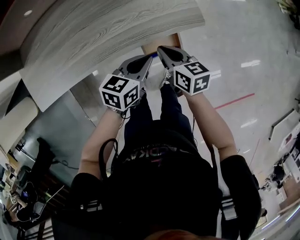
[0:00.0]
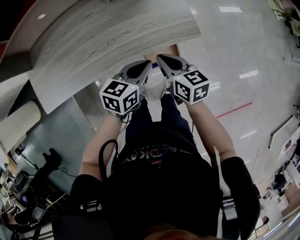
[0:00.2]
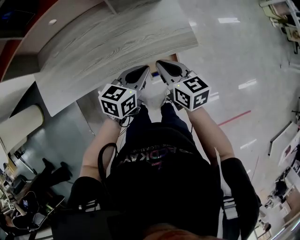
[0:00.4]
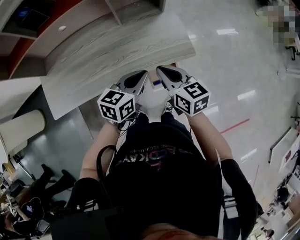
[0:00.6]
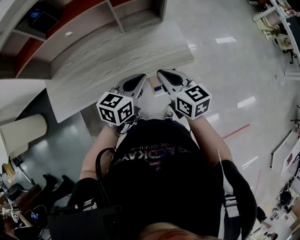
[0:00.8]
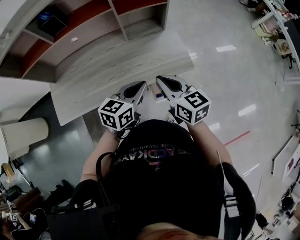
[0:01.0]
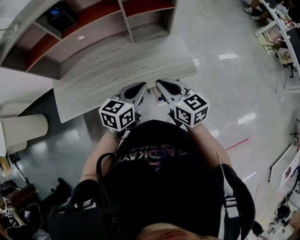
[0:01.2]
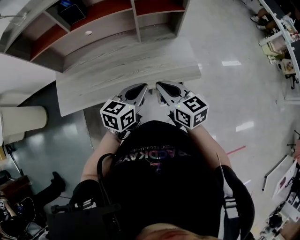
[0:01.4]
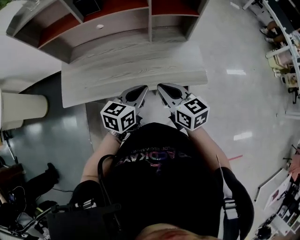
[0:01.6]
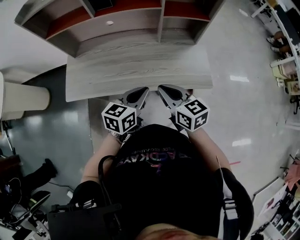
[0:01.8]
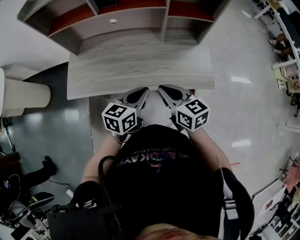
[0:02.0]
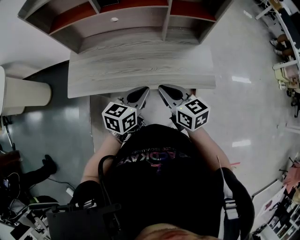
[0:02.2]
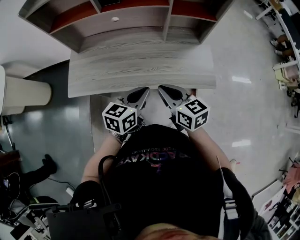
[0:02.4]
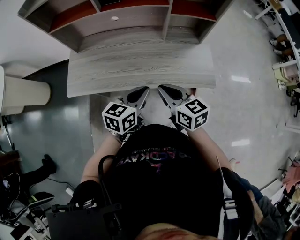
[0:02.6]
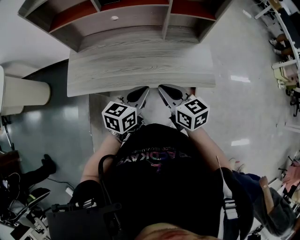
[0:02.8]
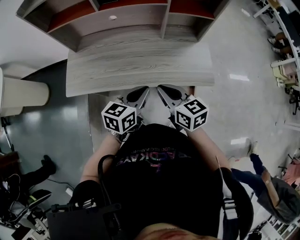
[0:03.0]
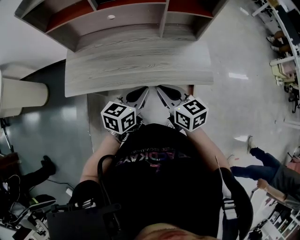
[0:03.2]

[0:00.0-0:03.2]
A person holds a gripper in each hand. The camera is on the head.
0:00.0 to 0:01.6: Both grippers move upward and to the left, approximately 15 cm. The left gripper swivels some 20 degrees; the right gripper turns by roughly 30 degrees.
0:01.6 to 0:03.2: There are only small adjustments of the grippers.

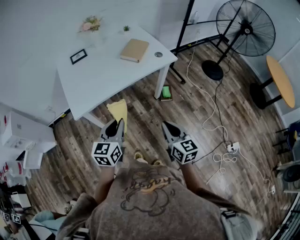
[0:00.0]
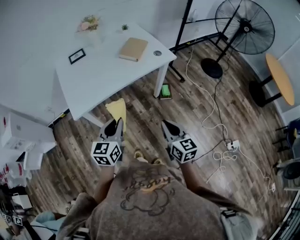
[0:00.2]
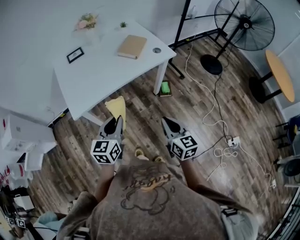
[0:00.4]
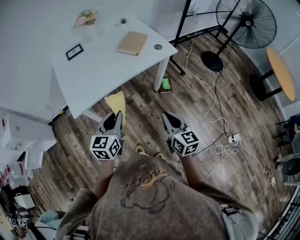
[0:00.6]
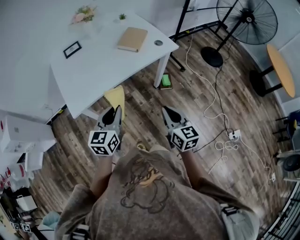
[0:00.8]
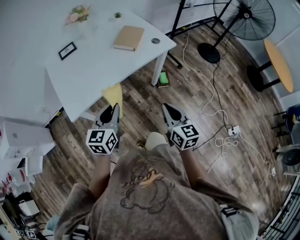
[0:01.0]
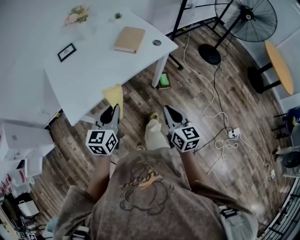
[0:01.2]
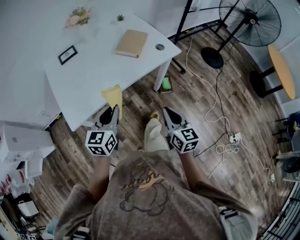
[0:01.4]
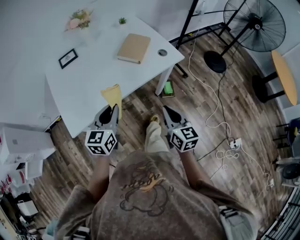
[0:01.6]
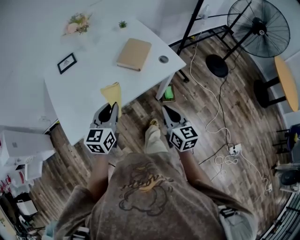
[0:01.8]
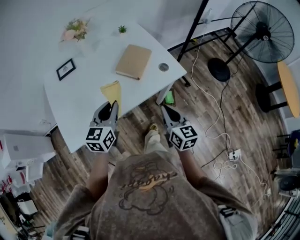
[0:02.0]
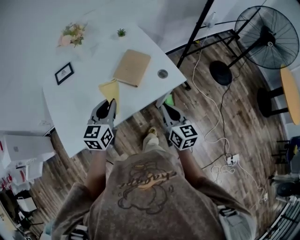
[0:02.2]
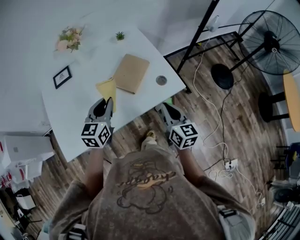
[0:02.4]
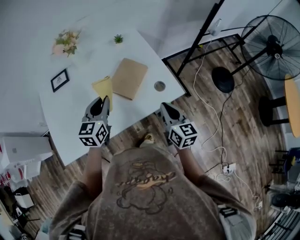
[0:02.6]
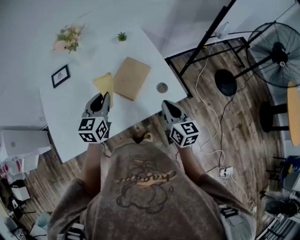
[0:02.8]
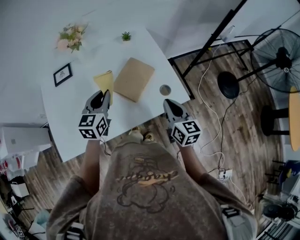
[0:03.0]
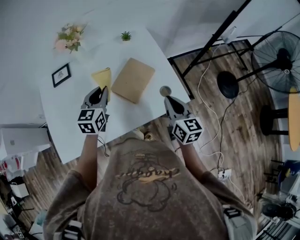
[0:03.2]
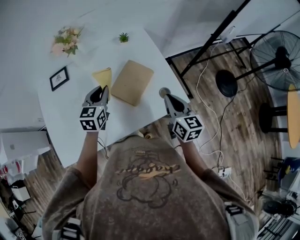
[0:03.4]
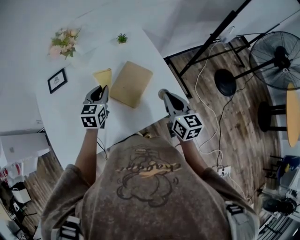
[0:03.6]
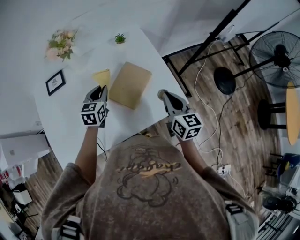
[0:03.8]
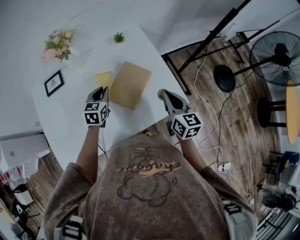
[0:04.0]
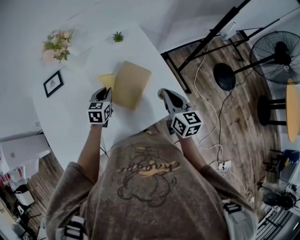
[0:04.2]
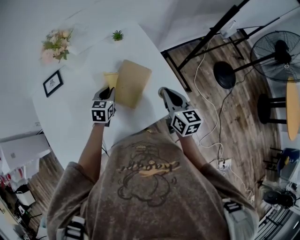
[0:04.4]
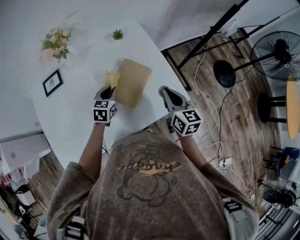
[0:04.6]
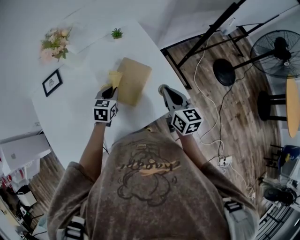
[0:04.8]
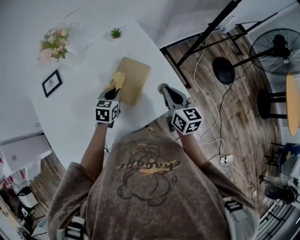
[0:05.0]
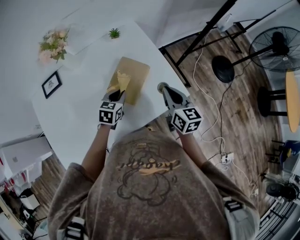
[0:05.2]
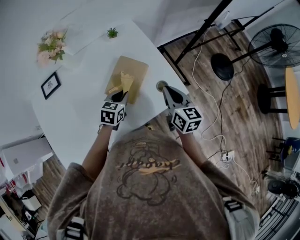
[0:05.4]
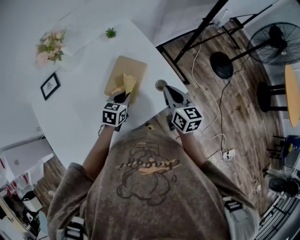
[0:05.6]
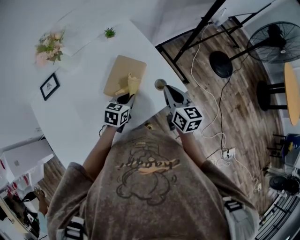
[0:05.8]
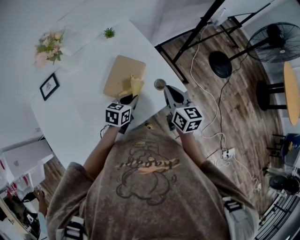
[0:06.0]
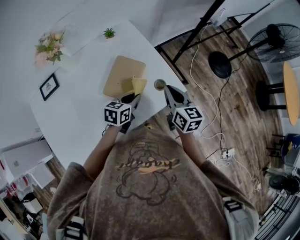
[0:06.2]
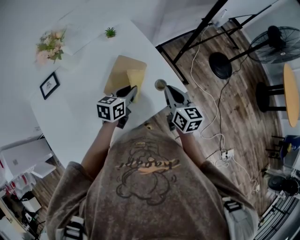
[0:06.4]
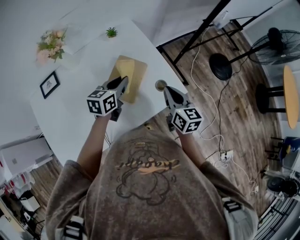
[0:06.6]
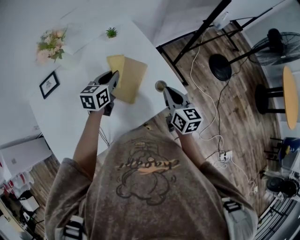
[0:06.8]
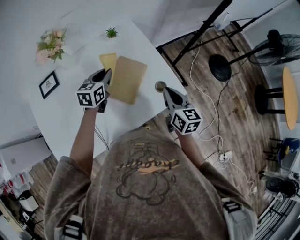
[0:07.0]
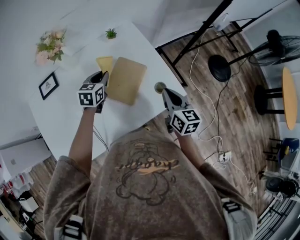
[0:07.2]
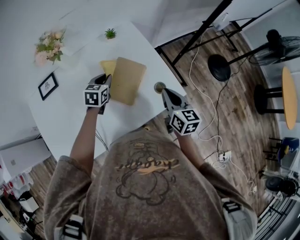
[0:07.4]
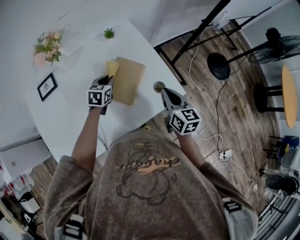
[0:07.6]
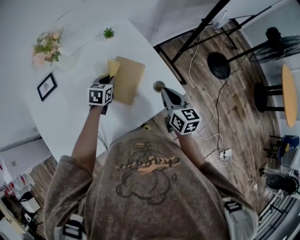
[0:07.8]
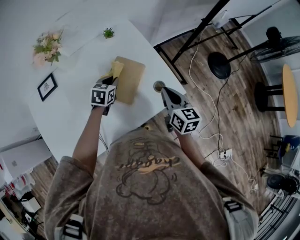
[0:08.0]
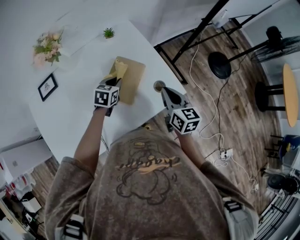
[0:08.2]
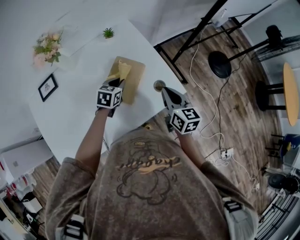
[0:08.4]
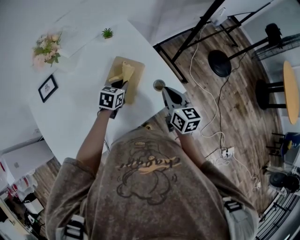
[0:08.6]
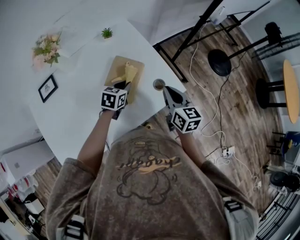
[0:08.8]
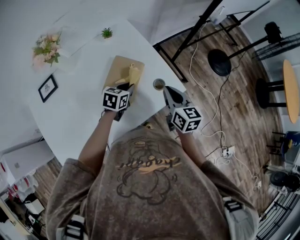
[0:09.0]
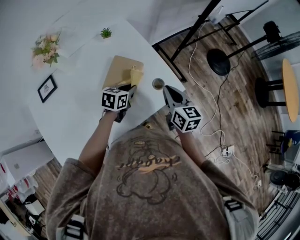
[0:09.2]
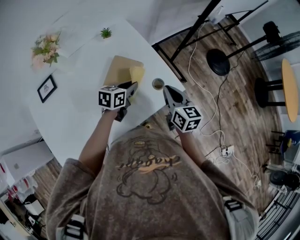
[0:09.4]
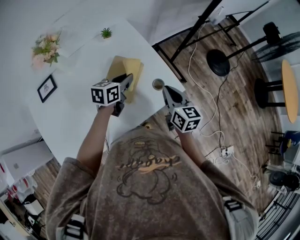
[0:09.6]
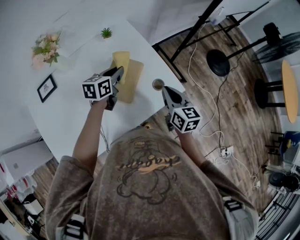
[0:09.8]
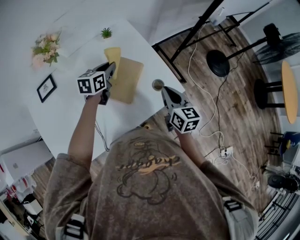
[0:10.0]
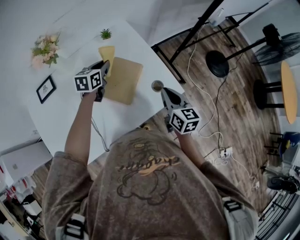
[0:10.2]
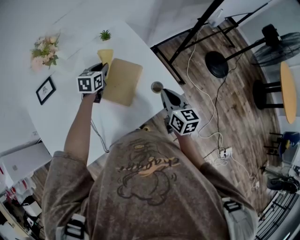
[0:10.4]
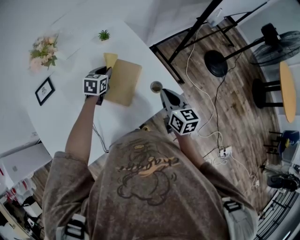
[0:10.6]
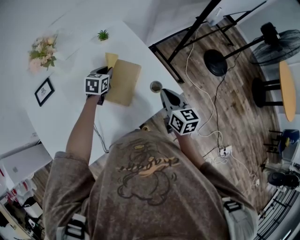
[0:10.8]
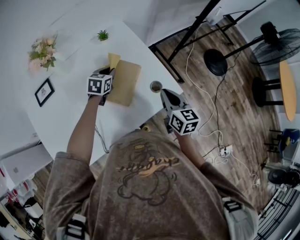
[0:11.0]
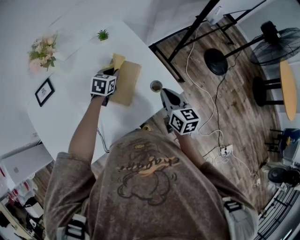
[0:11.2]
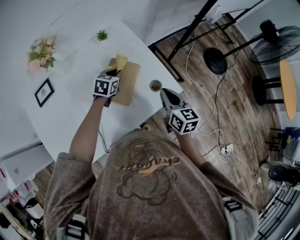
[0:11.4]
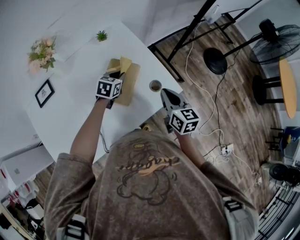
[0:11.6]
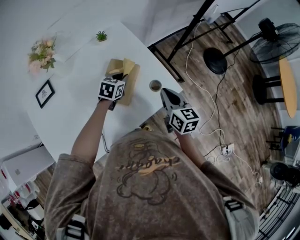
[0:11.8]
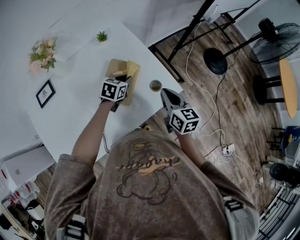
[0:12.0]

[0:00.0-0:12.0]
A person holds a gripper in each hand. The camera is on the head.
0:00.0 to 0:01.6: Both grippers travel together forward, some 20 cm.
0:01.6 to 0:03.0: Both grippers travel together forward, about 35 cm.
0:03.0 to 0:04.4: The left gripper travels downward and forward by some 20 cm, while the right gripper moves forward, roughly 10 cm.
0:04.4 to 0:06.0: The left gripper moves to the right and backward, about 15 cm, and swivels some 20 degrees.
0:06.0 to 0:07.6: The left gripper travels to the left and forward by some 15 cm.
0:07.6 to 0:09.0: The left gripper moves to the right, some 10 cm.
0:09.0 to 0:10.4: The left gripper travels to the left and forward by some 15 cm.
0:10.4 to 0:12.0: The left gripper travels to the right and backward by roughly 15 cm.

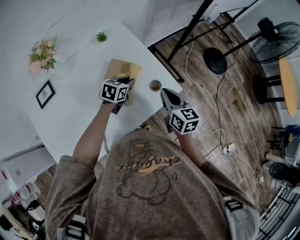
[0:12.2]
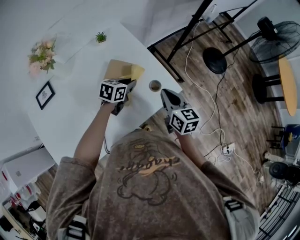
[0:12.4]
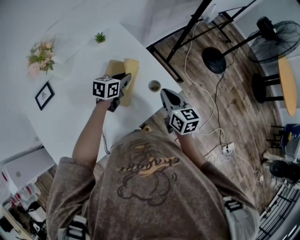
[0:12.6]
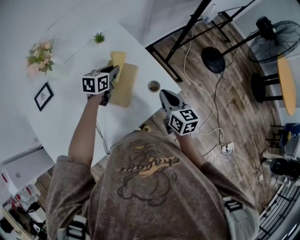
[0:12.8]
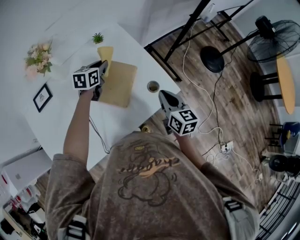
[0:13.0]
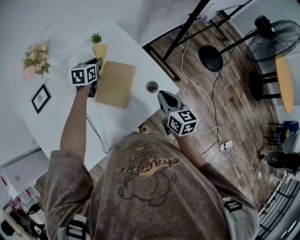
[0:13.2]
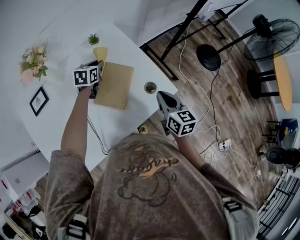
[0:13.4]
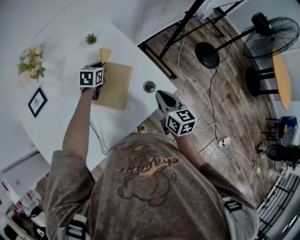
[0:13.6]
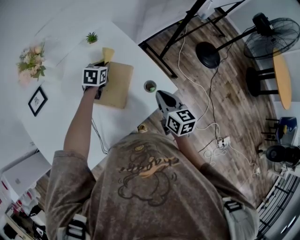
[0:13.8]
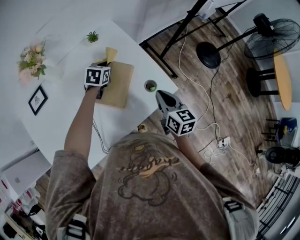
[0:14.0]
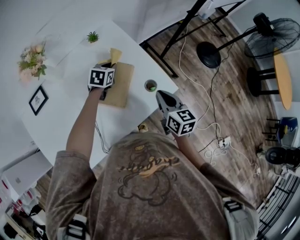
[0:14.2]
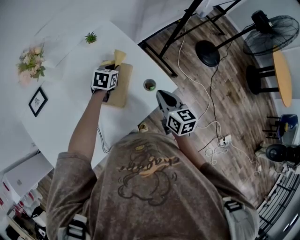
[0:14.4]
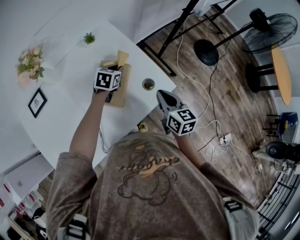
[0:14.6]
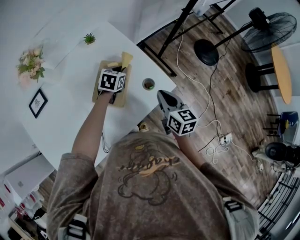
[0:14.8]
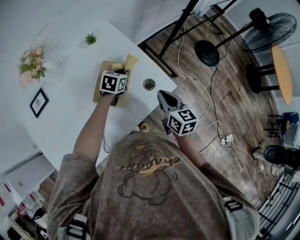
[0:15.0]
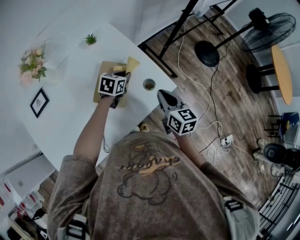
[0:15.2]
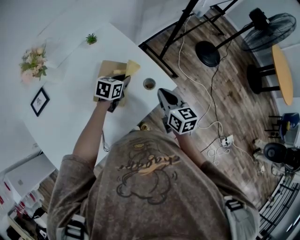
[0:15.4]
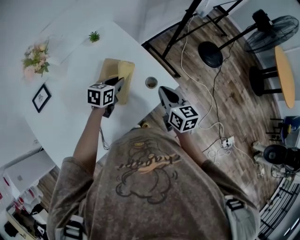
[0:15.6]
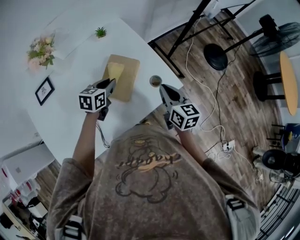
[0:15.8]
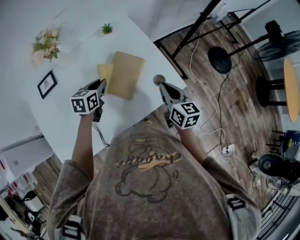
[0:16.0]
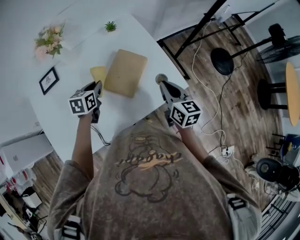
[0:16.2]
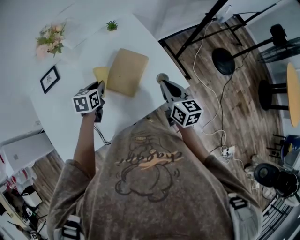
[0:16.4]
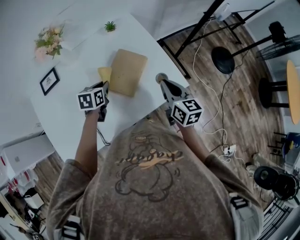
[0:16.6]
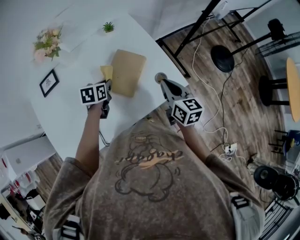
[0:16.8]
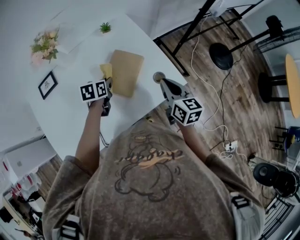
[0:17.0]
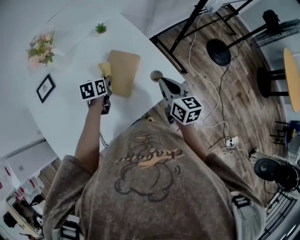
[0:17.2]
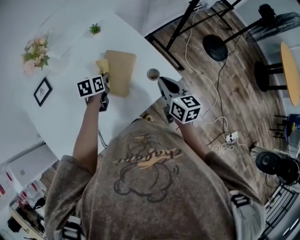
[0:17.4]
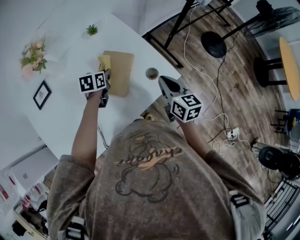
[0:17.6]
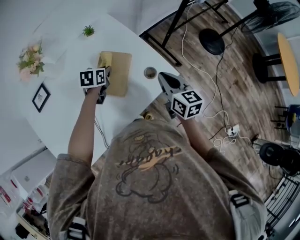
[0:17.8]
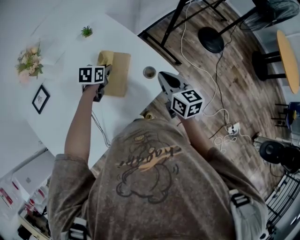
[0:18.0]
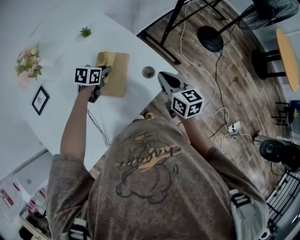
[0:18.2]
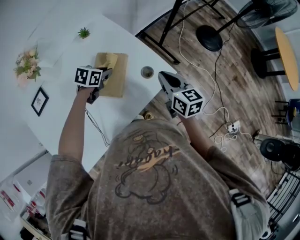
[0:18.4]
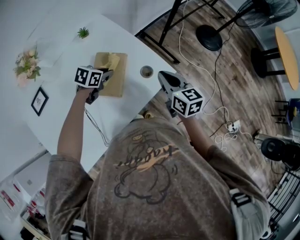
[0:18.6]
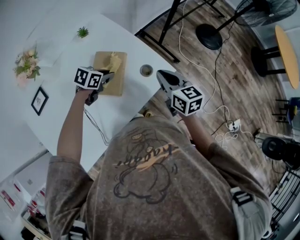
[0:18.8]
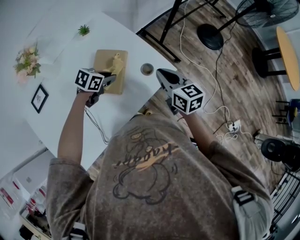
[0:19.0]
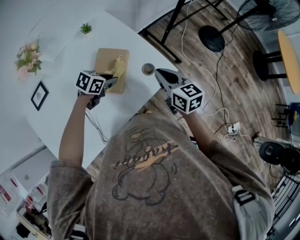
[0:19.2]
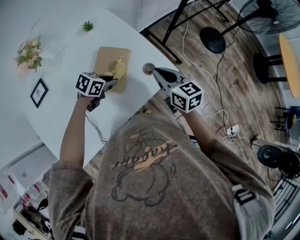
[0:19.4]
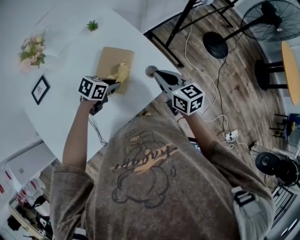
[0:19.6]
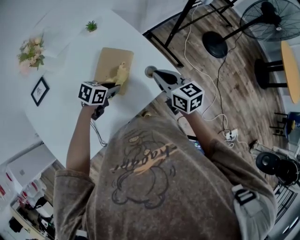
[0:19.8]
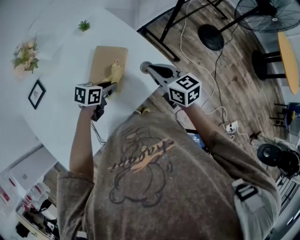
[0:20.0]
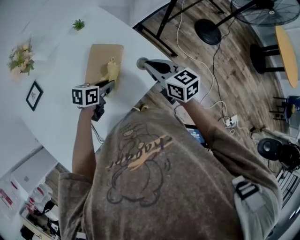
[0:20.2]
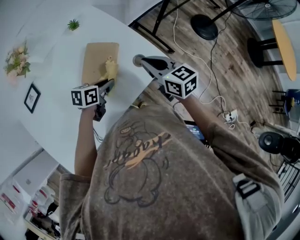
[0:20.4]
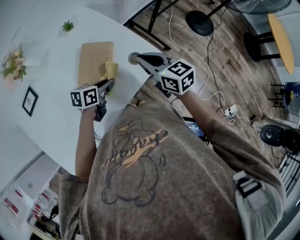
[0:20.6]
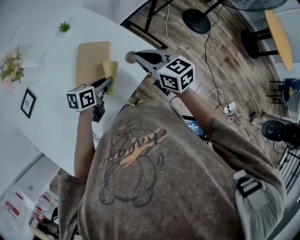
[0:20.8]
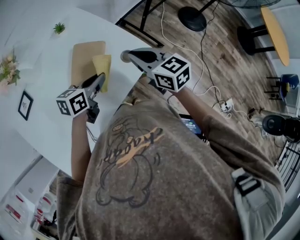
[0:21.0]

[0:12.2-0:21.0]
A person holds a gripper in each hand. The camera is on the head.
0:12.2 to 0:13.6: The left gripper is displaced to the left and forward by about 15 cm.
0:13.6 to 0:15.2: The left gripper is displaced to the right and backward by about 15 cm.
0:15.2 to 0:16.6: The left gripper moves to the left and backward, approximately 20 cm, and rotates about 30 degrees.
0:16.6 to 0:18.0: The right gripper moves to the right, about 5 cm, while the left gripper heads to the right and forward, covering about 15 cm, and swivels about 20 degrees.
0:18.0 to 0:19.6: The left gripper moves backward and to the right, roughly 10 cm, and changes its angle by some 20 degrees.
0:19.6 to 0:21.0: The left gripper moves upward, roughly 10 cm, and swivels some 20 degrees.
